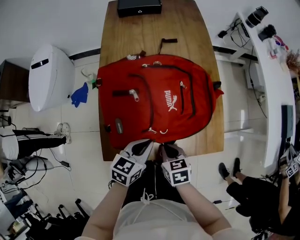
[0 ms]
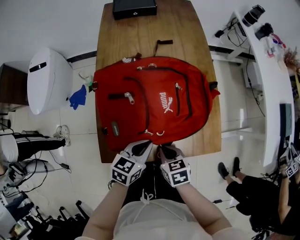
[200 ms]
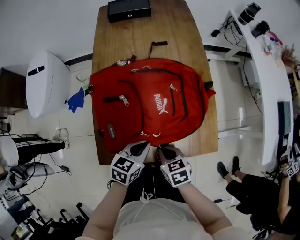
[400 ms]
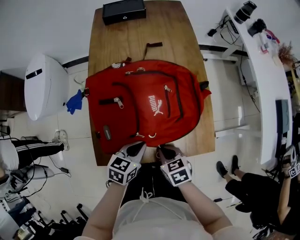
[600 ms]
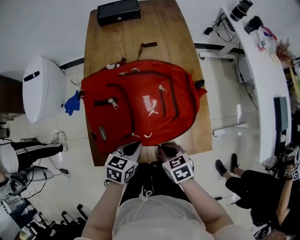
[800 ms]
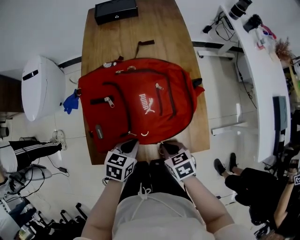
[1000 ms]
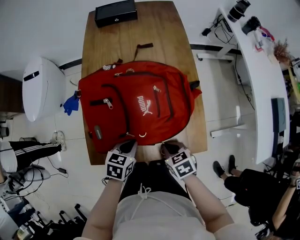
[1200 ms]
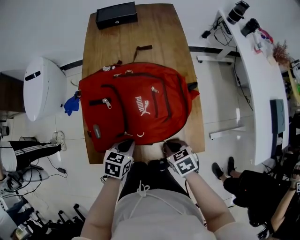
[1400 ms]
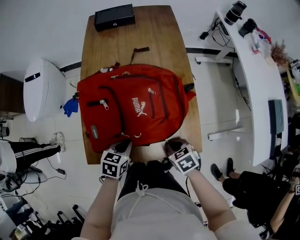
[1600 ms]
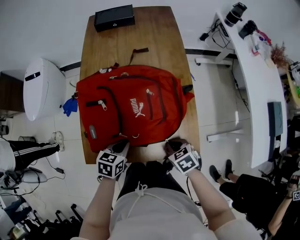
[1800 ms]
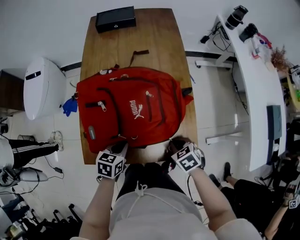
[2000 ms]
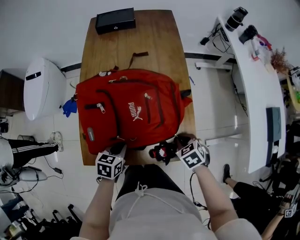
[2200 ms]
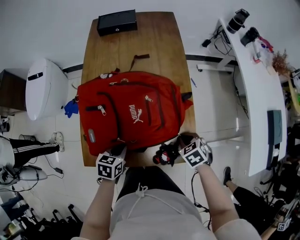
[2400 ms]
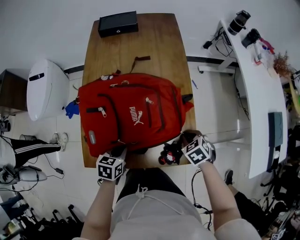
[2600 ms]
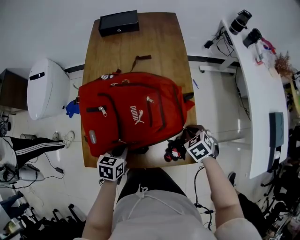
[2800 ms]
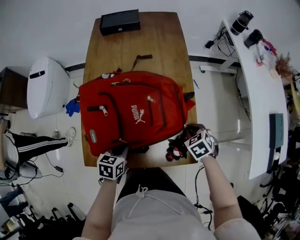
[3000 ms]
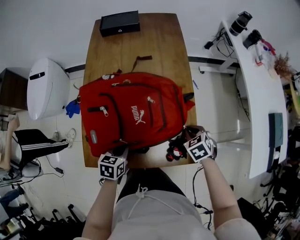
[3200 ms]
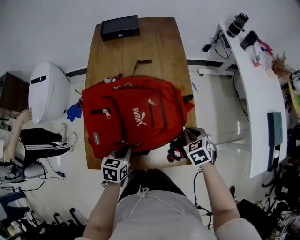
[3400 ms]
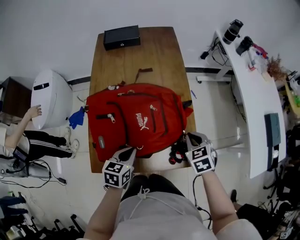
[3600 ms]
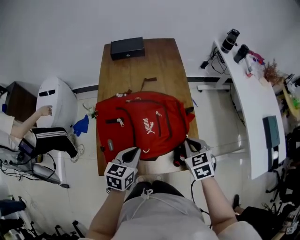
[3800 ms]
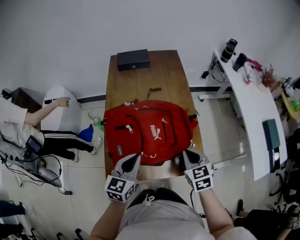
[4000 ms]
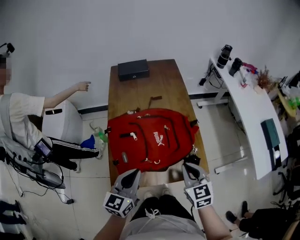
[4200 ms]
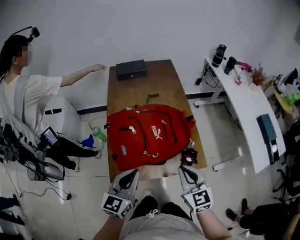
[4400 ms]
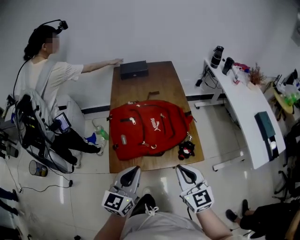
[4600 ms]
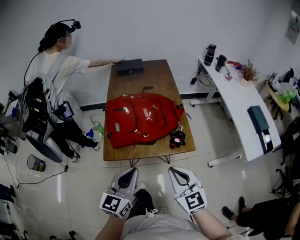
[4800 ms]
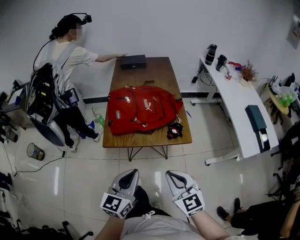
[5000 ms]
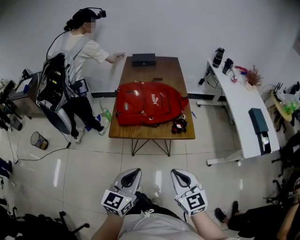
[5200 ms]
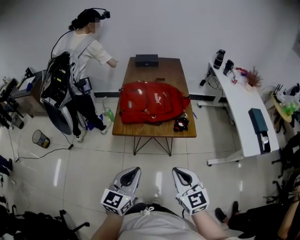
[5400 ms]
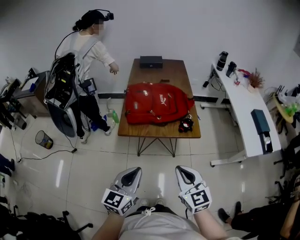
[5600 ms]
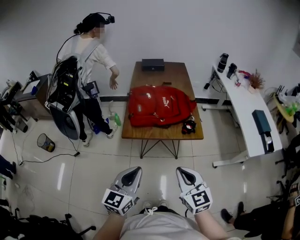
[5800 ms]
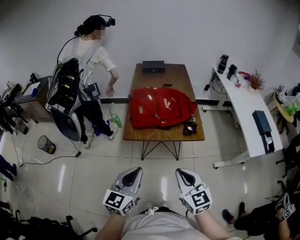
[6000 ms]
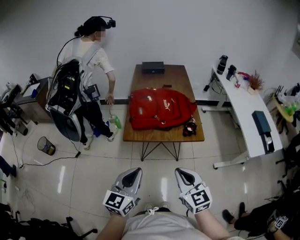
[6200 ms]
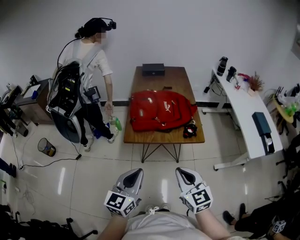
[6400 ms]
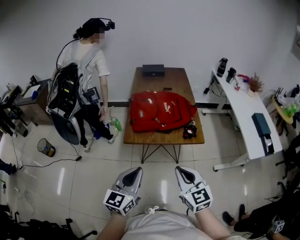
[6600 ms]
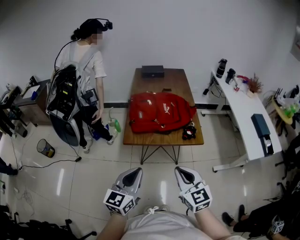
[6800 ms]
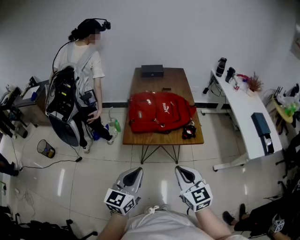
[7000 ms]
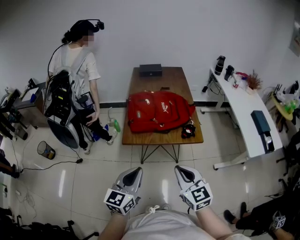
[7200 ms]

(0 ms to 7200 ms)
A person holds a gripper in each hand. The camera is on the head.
0 ms - 1400 ms: The right gripper travels to the right by roughly 10 cm.
1400 ms - 2800 ms: The right gripper shifts about 15 cm to the right and forward, and turns by about 20 degrees.
2800 ms - 4400 ms: The right gripper heads upward, backward and to the left, covering about 30 cm, and tilts its fingers approximately 50 degrees upward. Meanwhile the left gripper goes about 25 cm upward, and points its fingers about 40 degrees further upward.
4400 ms - 5800 ms: The grippers both shift backward by approximately 30 cm.
5800 ms - 7200 ms: The grippers stay close to where they were, moving slightly.

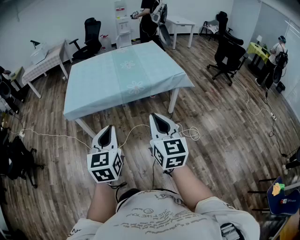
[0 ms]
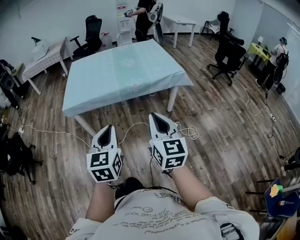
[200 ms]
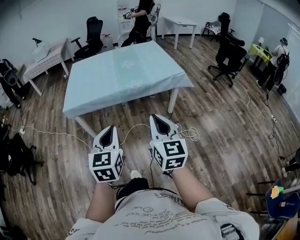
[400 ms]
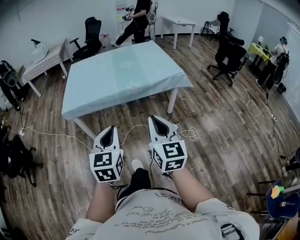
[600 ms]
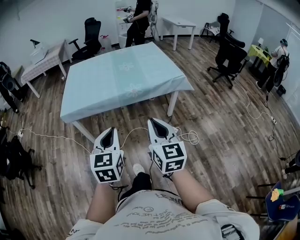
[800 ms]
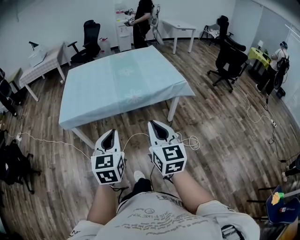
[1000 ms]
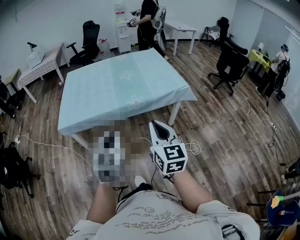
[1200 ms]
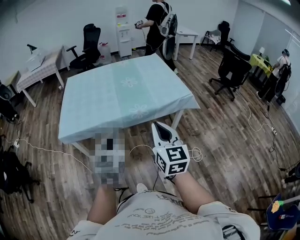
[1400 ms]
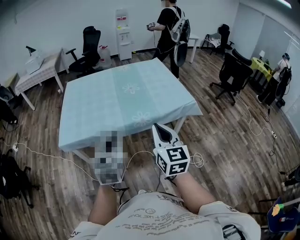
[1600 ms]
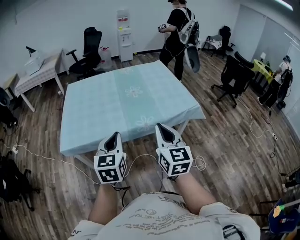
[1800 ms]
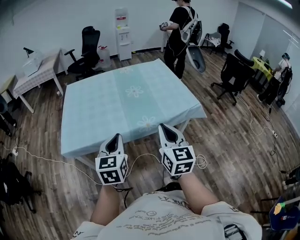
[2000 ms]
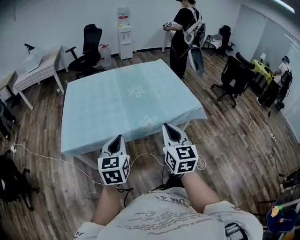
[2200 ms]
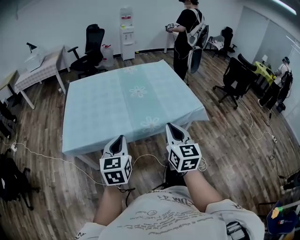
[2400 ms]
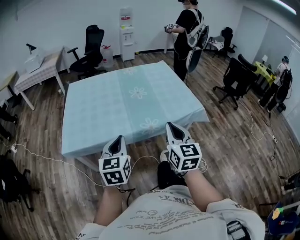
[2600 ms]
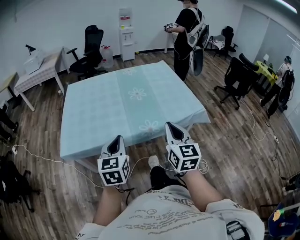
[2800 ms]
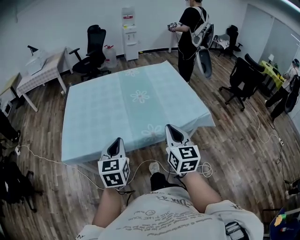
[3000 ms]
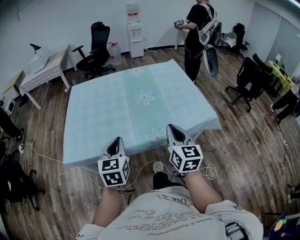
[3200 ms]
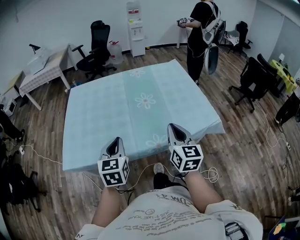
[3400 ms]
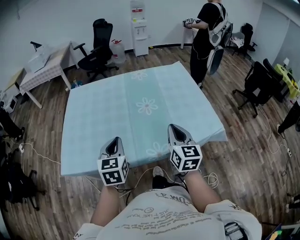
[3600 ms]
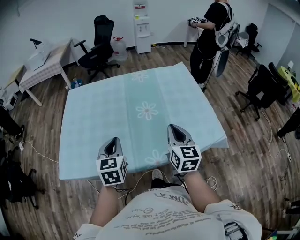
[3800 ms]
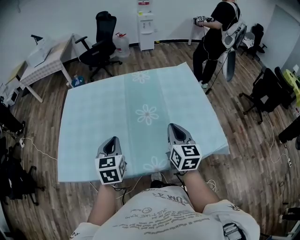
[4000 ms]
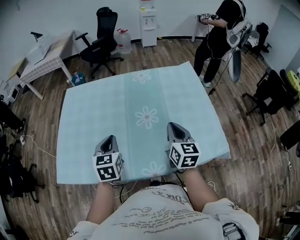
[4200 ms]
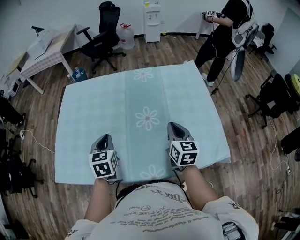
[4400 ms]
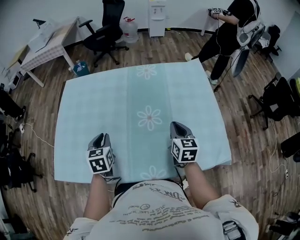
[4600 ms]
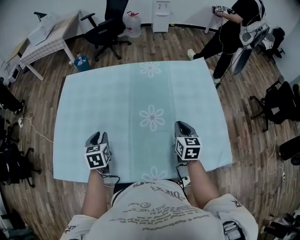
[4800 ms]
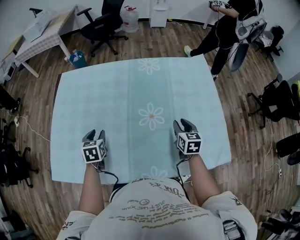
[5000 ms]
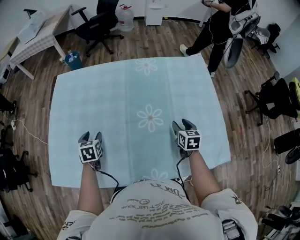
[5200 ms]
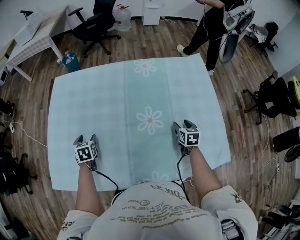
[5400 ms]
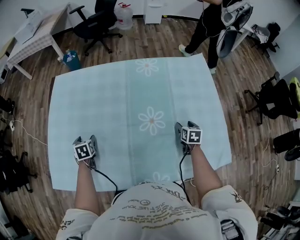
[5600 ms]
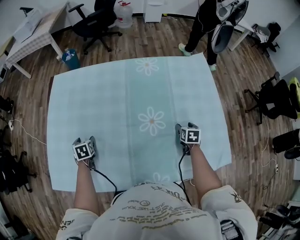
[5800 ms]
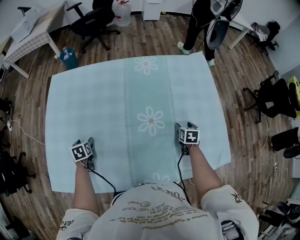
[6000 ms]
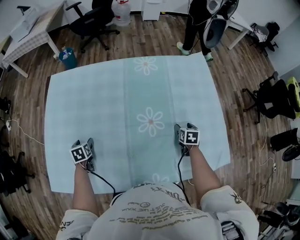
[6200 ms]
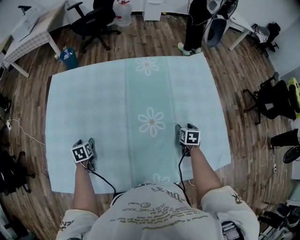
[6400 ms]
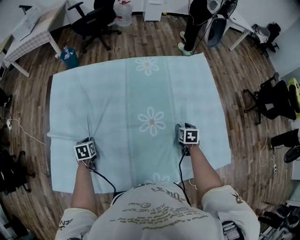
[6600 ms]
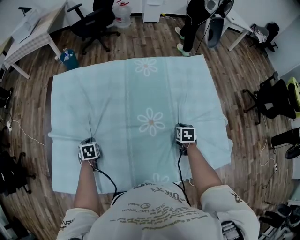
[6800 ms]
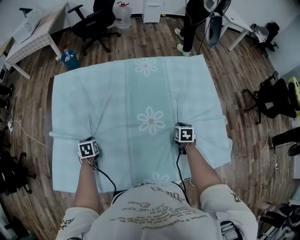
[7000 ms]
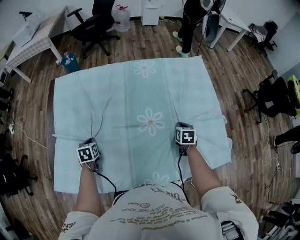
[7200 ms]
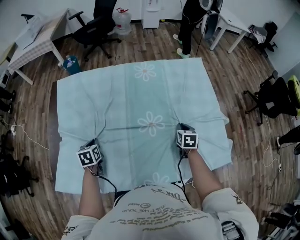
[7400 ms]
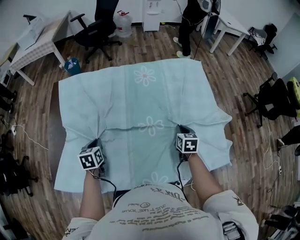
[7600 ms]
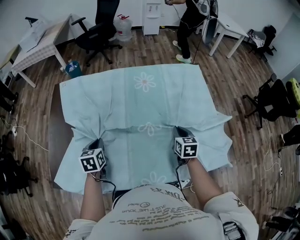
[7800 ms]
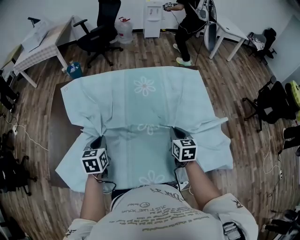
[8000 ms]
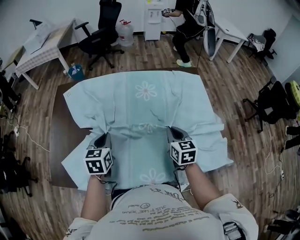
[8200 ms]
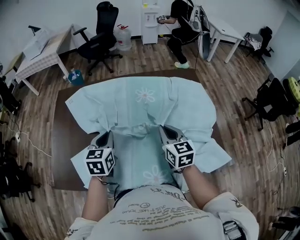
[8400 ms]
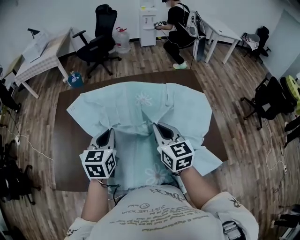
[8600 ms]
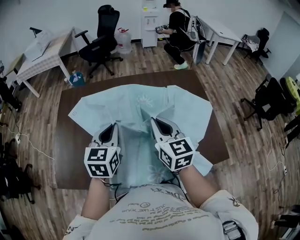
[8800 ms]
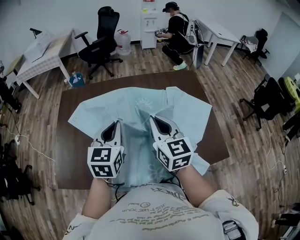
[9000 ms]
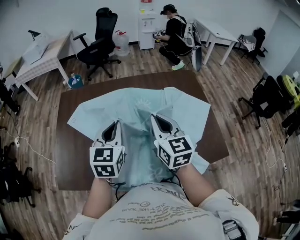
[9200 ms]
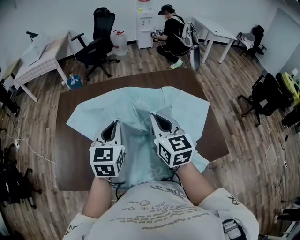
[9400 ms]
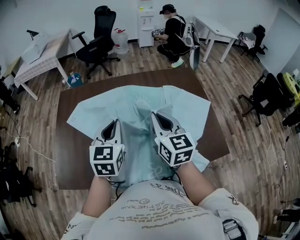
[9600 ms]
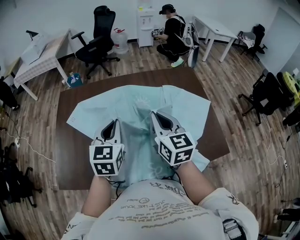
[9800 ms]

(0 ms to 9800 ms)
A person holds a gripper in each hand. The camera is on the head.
0 ms - 1400 ms: Both grippers move forward, about 20 cm.
1400 ms - 2800 ms: Both grippers move forward, some 15 cm.
2800 ms - 4200 ms: The two grippers go about 35 cm forward.
4200 ms - 5600 ms: The right gripper shifts approximately 30 cm downward, forward and to the right, angles its fingers downward, by approximately 40 degrees, and opens; the left gripper is displaced downward, to the left and forward by about 35 cm, swivels some 30 degrees, and opens.
5600 ms - 7000 ms: The right gripper closes, while the left gripper closes up.
7000 ms - 8400 ms: The left gripper goes approximately 30 cm upward and to the right, and tips its fingers upward by about 30 degrees, while the right gripper shifts roughly 25 cm upward and to the left, and tips its fingers upward by approximately 40 degrees.
8400 ms - 9800 ms: The left gripper moves upward, some 10 cm, while the right gripper goes some 10 cm upward and to the left.

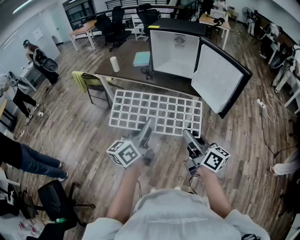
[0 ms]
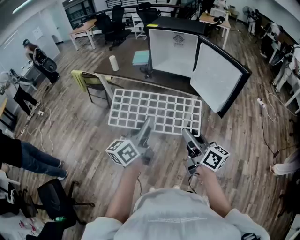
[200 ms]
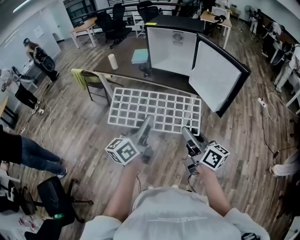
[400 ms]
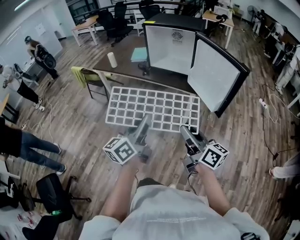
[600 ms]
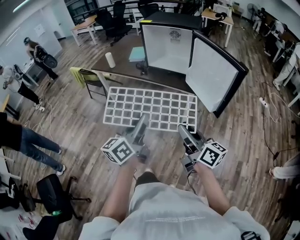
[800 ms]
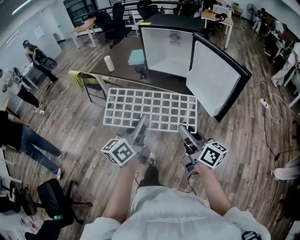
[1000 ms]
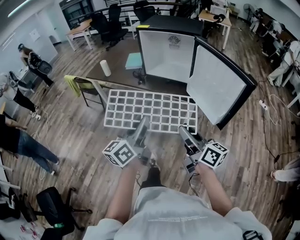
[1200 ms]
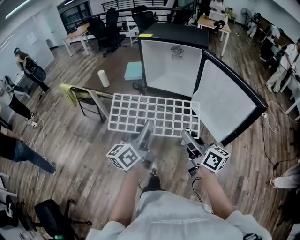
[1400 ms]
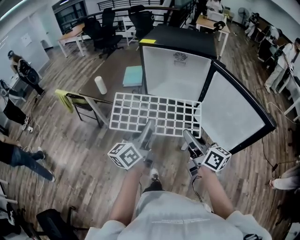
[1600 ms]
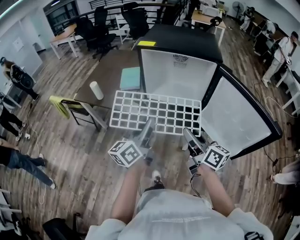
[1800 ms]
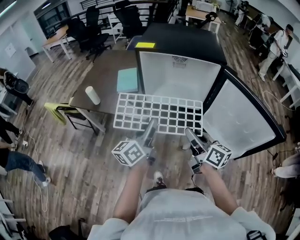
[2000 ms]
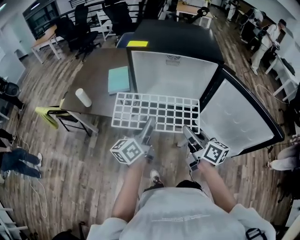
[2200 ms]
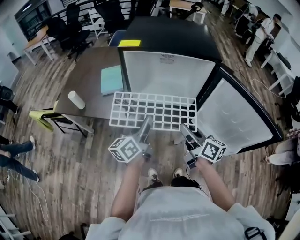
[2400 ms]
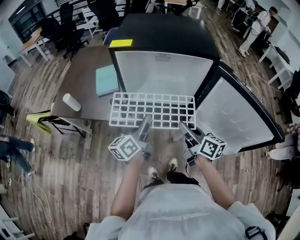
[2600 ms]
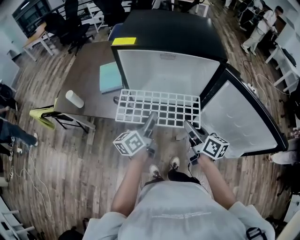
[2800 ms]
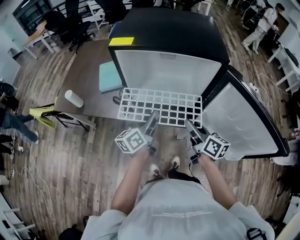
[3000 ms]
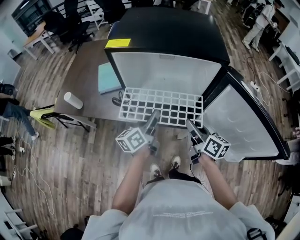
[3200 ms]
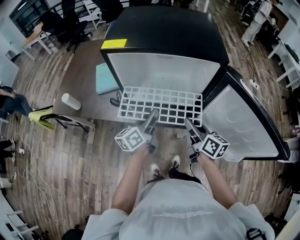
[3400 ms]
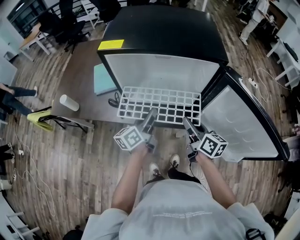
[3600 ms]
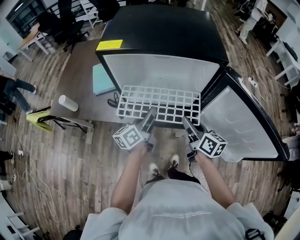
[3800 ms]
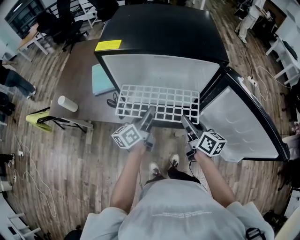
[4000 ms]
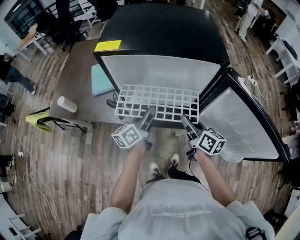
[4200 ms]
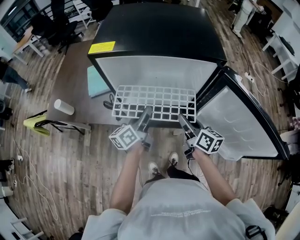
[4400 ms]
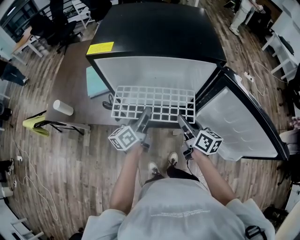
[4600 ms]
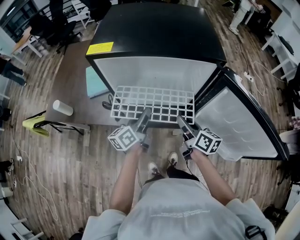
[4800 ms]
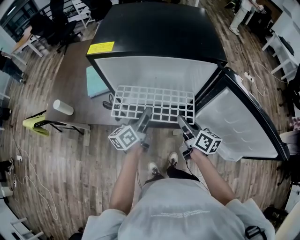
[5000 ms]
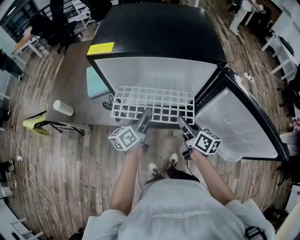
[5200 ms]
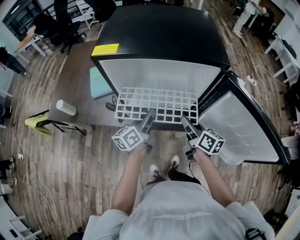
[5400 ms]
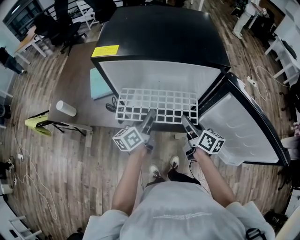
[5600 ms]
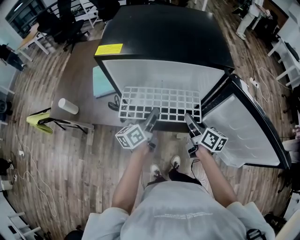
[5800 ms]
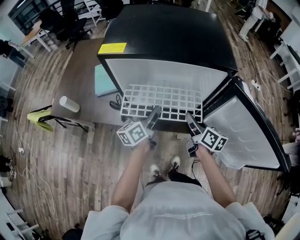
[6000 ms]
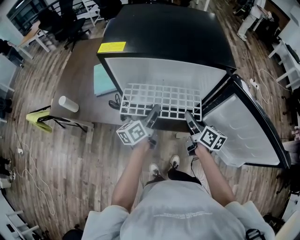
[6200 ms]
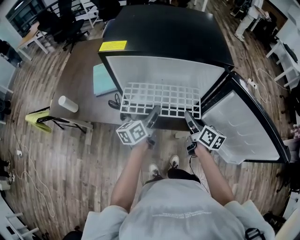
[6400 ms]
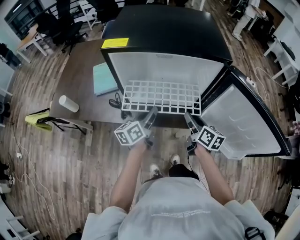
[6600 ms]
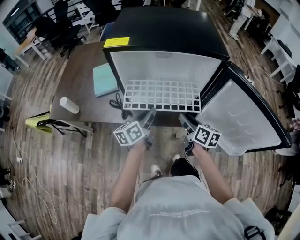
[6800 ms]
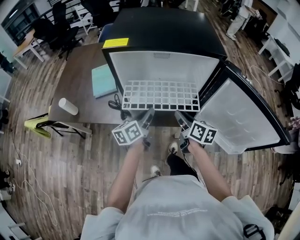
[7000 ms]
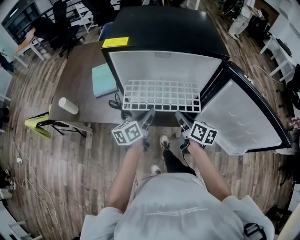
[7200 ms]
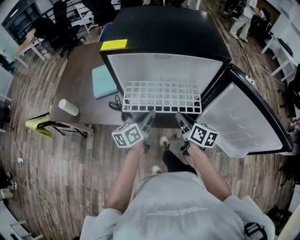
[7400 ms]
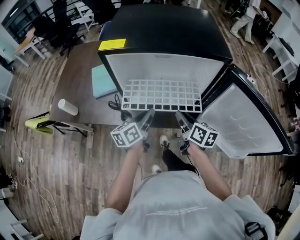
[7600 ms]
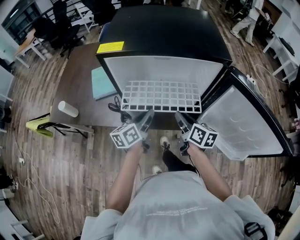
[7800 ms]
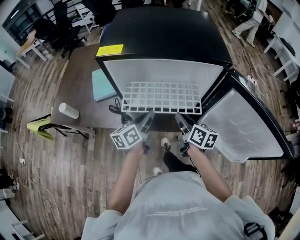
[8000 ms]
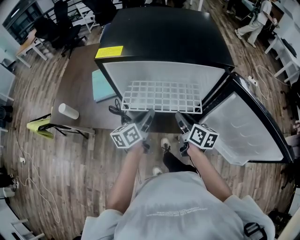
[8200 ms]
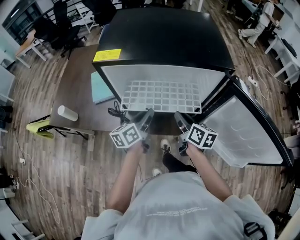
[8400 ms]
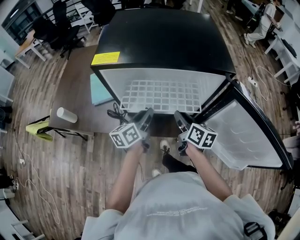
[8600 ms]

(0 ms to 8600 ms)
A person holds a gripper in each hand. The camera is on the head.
0 ms - 1400 ms: Both grippers move forward, roughly 20 cm.
1400 ms - 2800 ms: The two grippers go some 30 cm forward. The right gripper changes its angle by roughly 20 degrees, while the left gripper swivels roughly 20 degrees.
2800 ms - 4400 ms: The grippers both shift forward by approximately 5 cm.
4400 ms - 5800 ms: The grippers move only a little.
5800 ms - 7200 ms: The right gripper shifts by roughly 5 cm.
7200 ms - 8600 ms: The grippers make only small movements.
